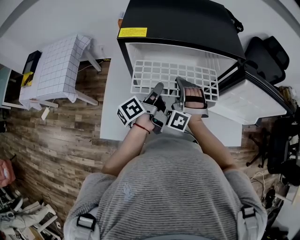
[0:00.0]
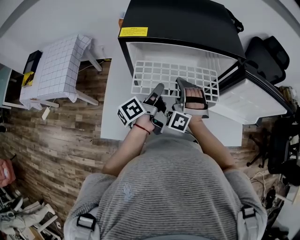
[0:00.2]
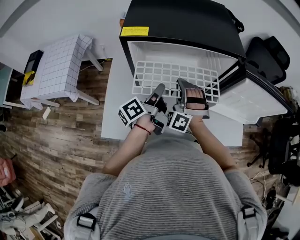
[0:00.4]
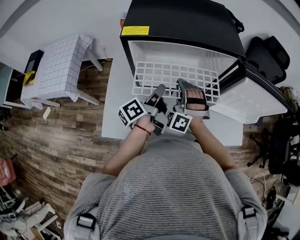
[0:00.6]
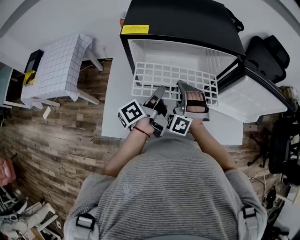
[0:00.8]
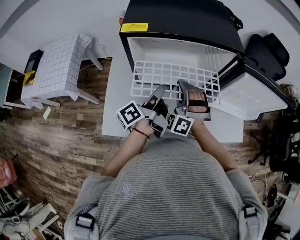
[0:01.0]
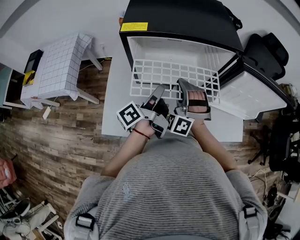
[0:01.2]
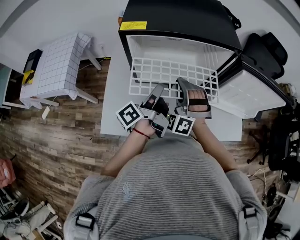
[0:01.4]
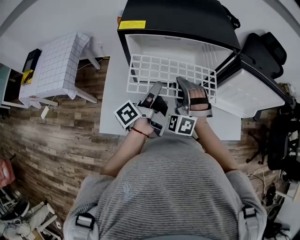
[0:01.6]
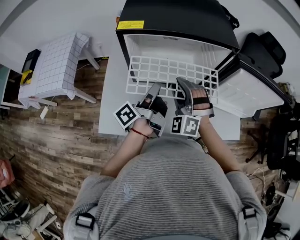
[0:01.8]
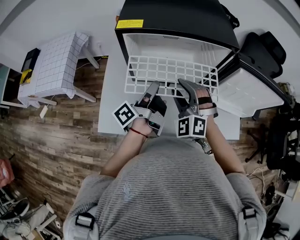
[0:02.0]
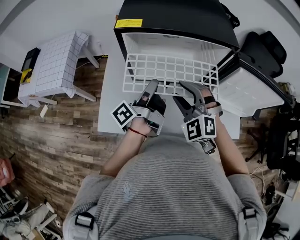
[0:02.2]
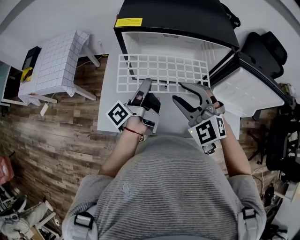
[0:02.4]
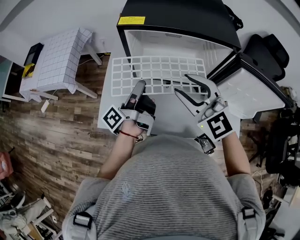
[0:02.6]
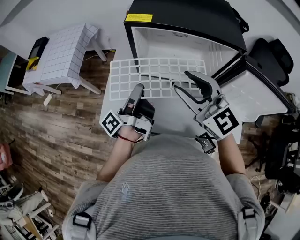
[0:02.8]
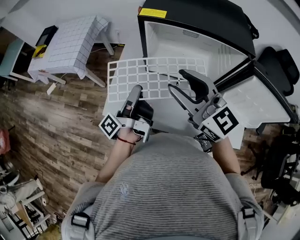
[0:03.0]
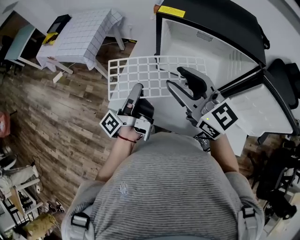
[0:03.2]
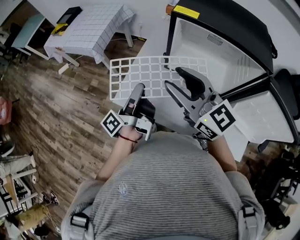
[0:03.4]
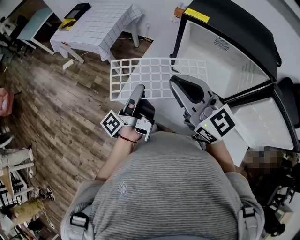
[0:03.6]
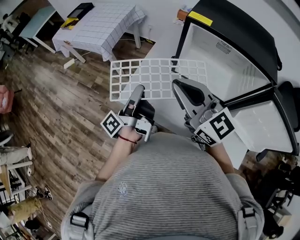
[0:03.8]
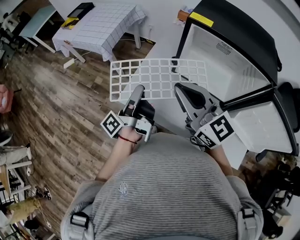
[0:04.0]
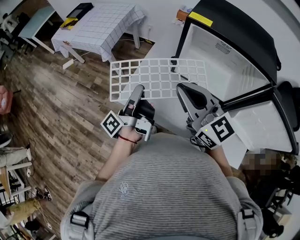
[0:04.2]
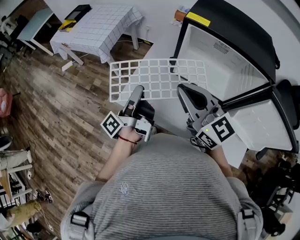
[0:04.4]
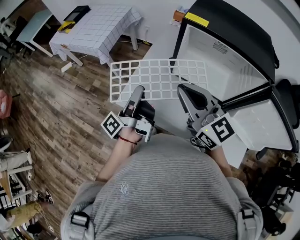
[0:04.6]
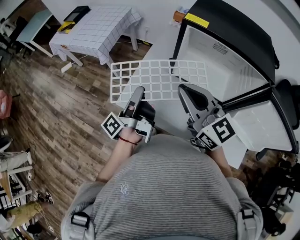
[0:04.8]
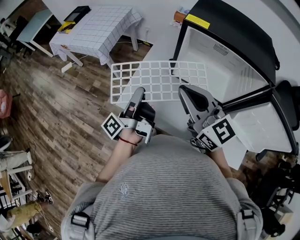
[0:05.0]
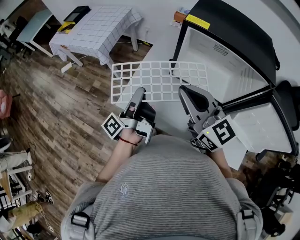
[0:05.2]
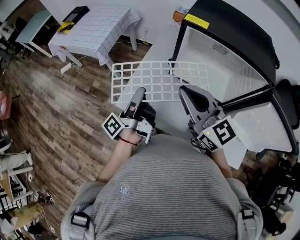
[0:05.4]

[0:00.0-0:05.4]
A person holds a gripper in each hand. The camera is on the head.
0:00.0 to 0:01.4: The left gripper shifts by approximately 5 cm. The right gripper changes place by some 5 cm.
0:01.4 to 0:02.8: The left gripper changes place by approximately 10 cm. Meanwhile the right gripper is displaced upward by about 15 cm, changes its angle by roughly 80 degrees, and opens up.
0:02.8 to 0:04.0: Both grippers travel together to the left, some 15 cm. The left gripper rotates approximately 20 degrees. The right gripper swivels approximately 20 degrees, and closes.
0:04.0 to 0:05.4: The grippers stay close to where they were, moving slightly.

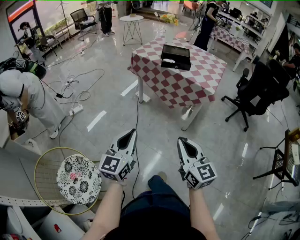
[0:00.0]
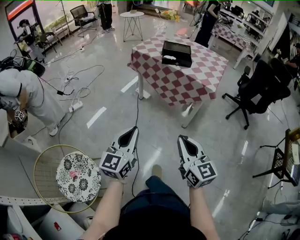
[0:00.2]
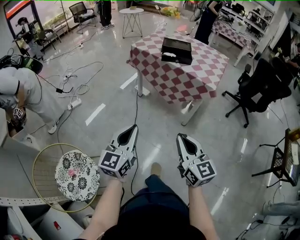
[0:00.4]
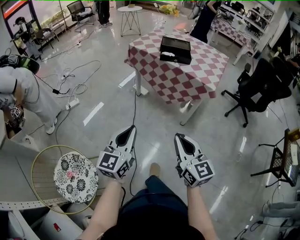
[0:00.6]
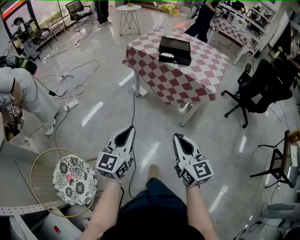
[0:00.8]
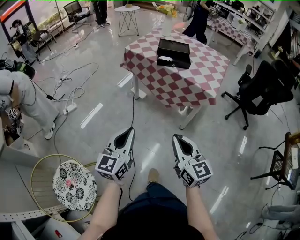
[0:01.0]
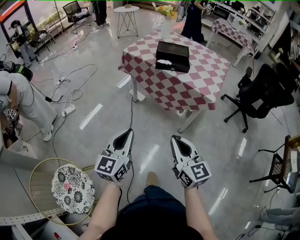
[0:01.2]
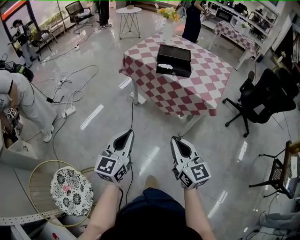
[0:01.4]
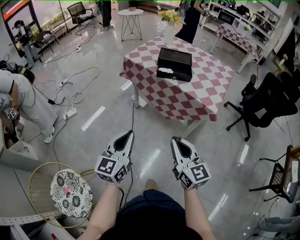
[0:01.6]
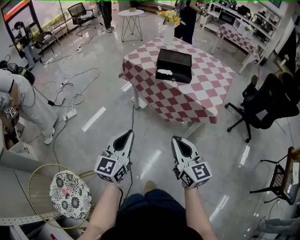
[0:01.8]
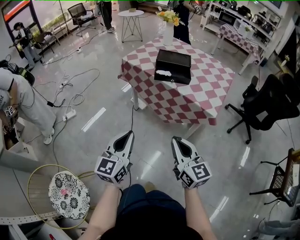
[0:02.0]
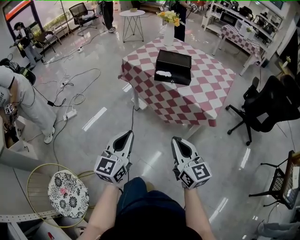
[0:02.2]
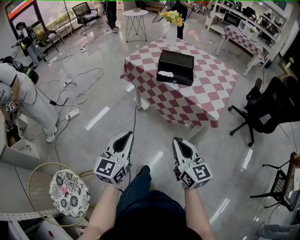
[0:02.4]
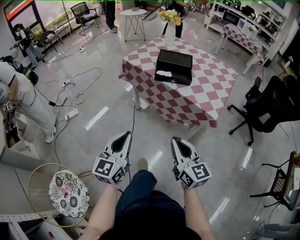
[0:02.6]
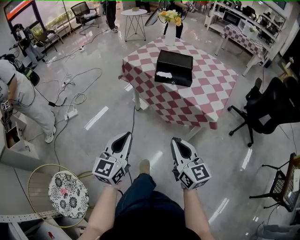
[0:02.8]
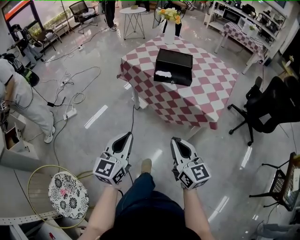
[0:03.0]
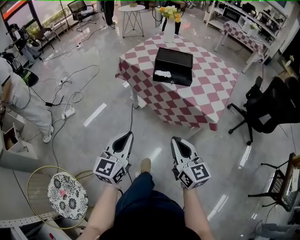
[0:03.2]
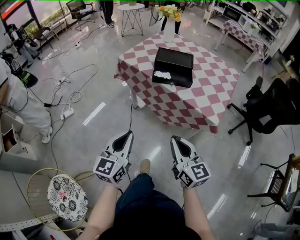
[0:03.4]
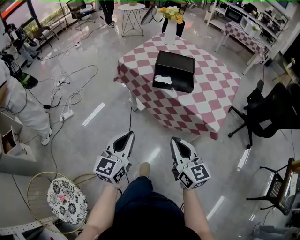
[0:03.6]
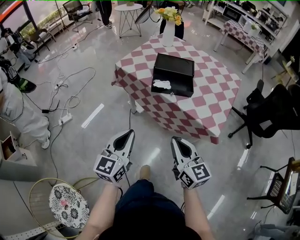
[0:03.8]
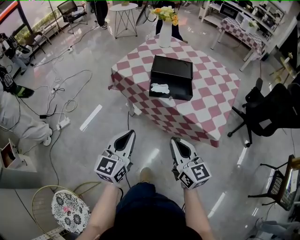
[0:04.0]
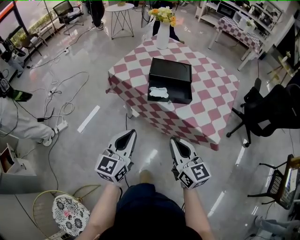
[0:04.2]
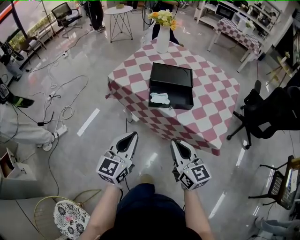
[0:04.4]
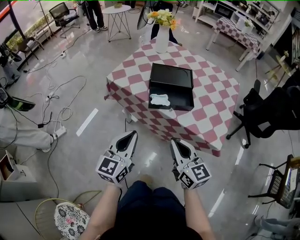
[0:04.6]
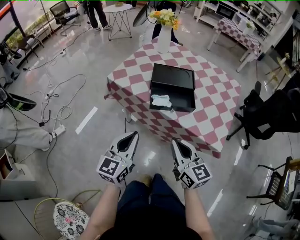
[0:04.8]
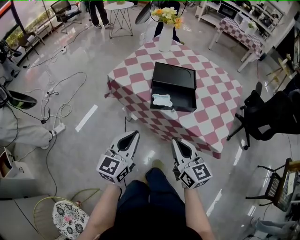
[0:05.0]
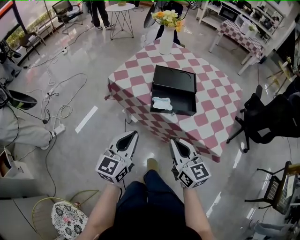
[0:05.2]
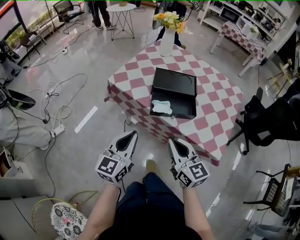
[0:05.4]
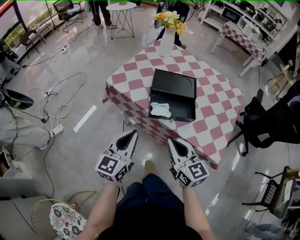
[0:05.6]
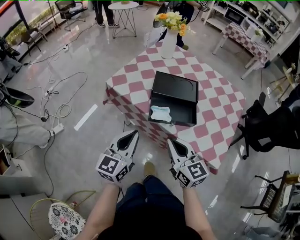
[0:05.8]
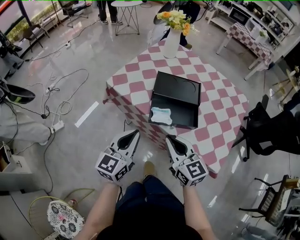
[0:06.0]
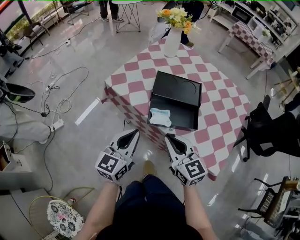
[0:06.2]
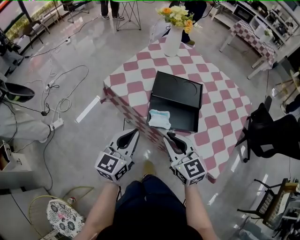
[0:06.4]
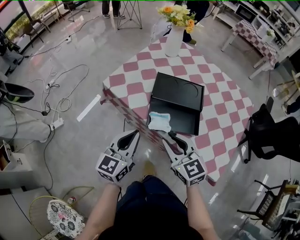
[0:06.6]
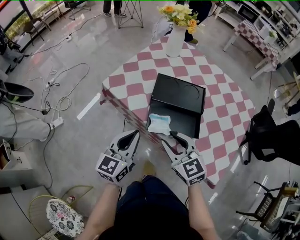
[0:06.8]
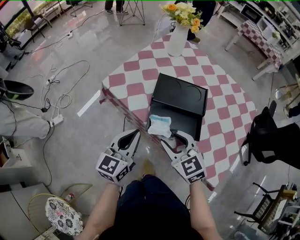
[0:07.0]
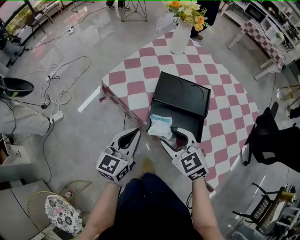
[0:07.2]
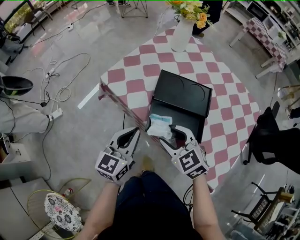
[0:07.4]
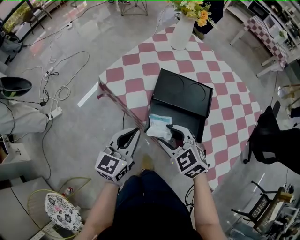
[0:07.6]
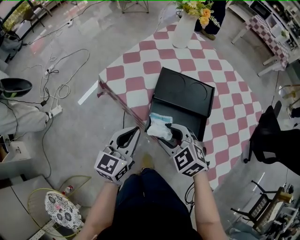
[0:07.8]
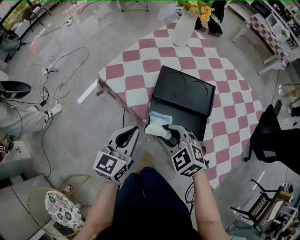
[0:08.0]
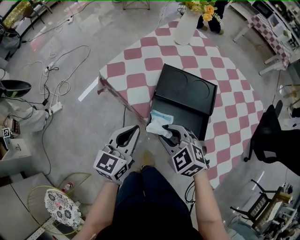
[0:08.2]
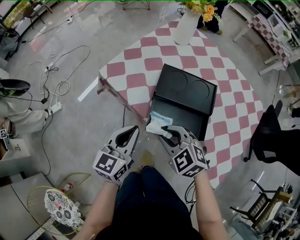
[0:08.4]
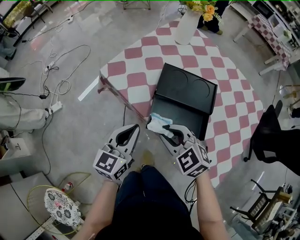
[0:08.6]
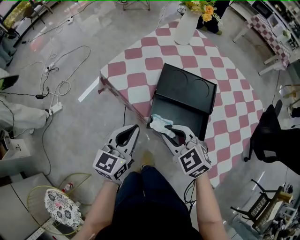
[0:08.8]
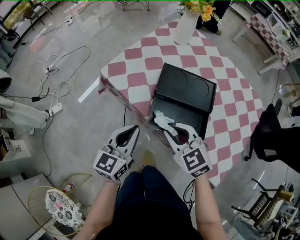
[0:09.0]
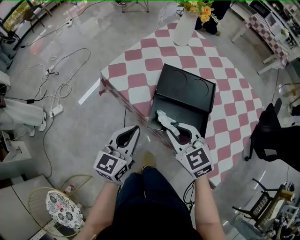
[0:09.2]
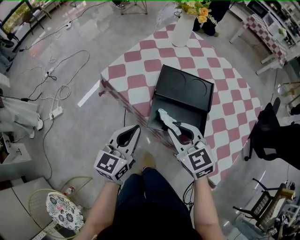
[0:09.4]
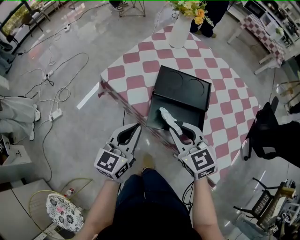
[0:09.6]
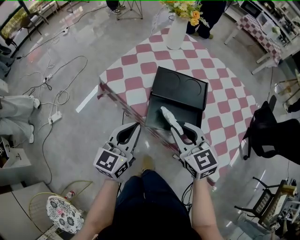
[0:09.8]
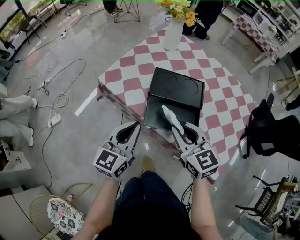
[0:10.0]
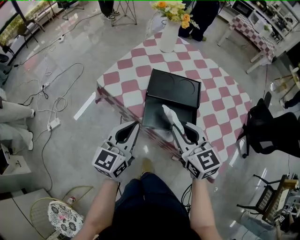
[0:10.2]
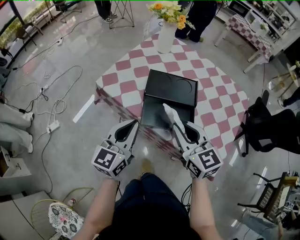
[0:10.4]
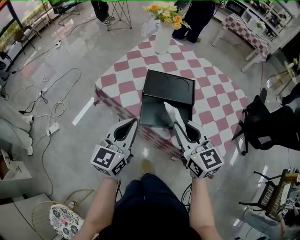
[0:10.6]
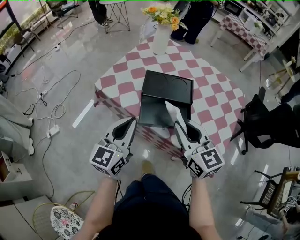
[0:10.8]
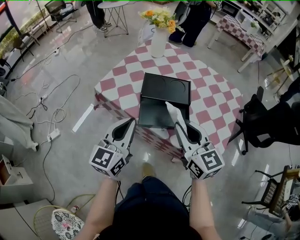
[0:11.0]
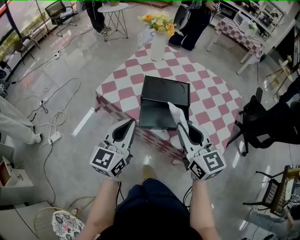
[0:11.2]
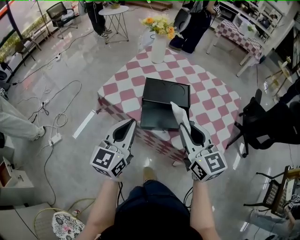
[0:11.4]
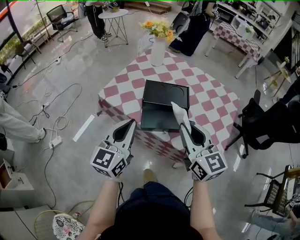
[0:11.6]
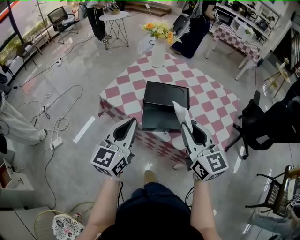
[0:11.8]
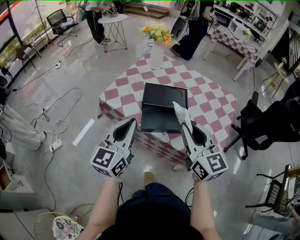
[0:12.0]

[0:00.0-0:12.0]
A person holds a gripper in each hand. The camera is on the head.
0:00.0 to 0:01.6: The grippers both shift forward by roughly 20 cm.
0:01.6 to 0:03.0: Both grippers move forward, some 5 cm.
0:03.0 to 0:04.4: The grippers both shift forward by approximately 20 cm.
0:04.4 to 0:06.0: The grippers both shift forward by some 15 cm.
0:06.0 to 0:07.6: The two grippers go roughly 10 cm forward and downward. The right gripper changes its angle by some 40 degrees, and opens its fingers.
0:07.6 to 0:09.0: The right gripper closes its fingers.
0:09.0 to 0:10.4: The left gripper is displaced upward by some 10 cm. The right gripper travels upward and to the right by some 10 cm, and turns by some 30 degrees.
0:10.4 to 0:12.0: The left gripper goes approximately 10 cm upward; the right gripper shifts roughly 10 cm upward and backward.

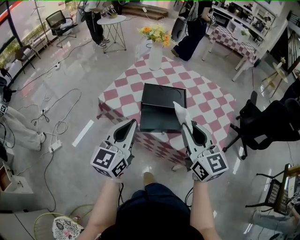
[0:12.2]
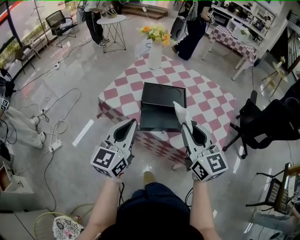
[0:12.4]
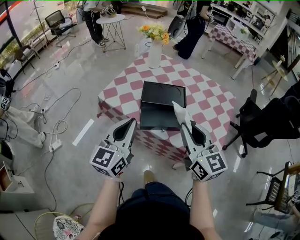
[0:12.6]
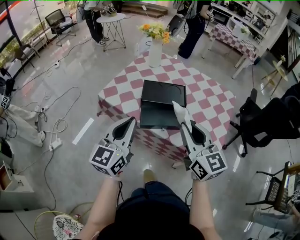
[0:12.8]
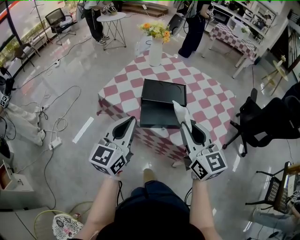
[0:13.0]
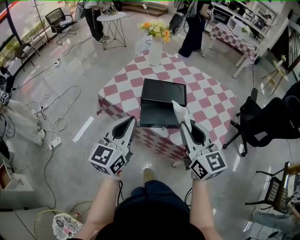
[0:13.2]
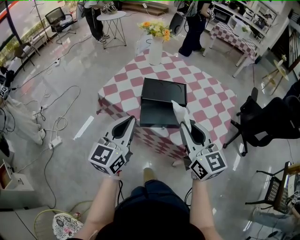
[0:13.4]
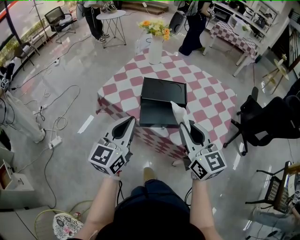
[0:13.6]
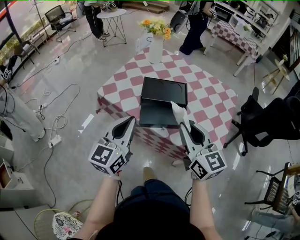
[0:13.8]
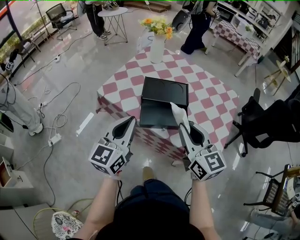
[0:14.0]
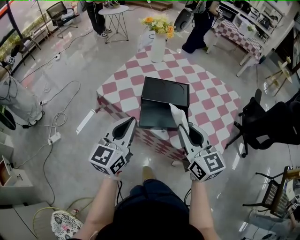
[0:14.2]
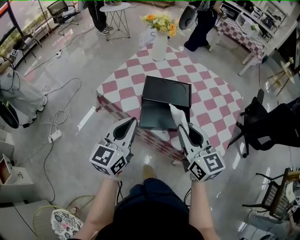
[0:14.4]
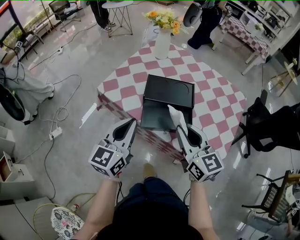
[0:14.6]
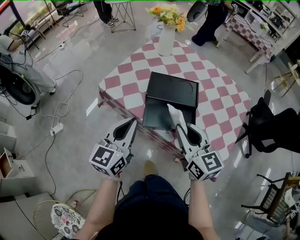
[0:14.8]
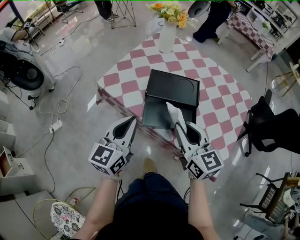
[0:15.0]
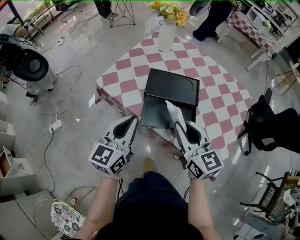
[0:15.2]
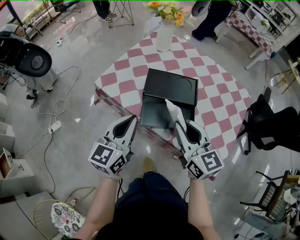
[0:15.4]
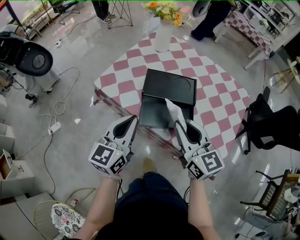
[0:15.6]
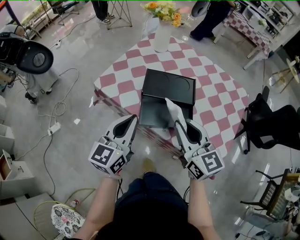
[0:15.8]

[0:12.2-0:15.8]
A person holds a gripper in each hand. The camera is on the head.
0:12.2 to 0:14.0: There are only small adjustments of the grippers.
0:14.0 to 0:15.8: The left gripper shifts by roughly 5 cm. The right gripper moves forward, some 5 cm.

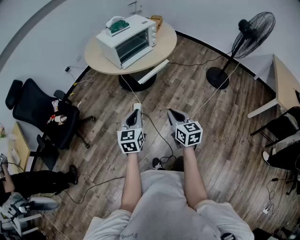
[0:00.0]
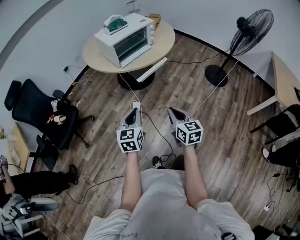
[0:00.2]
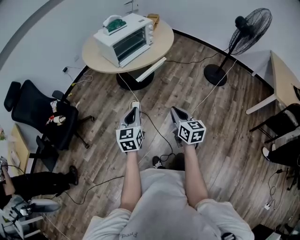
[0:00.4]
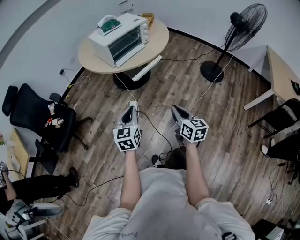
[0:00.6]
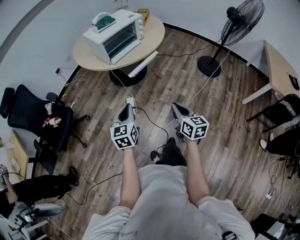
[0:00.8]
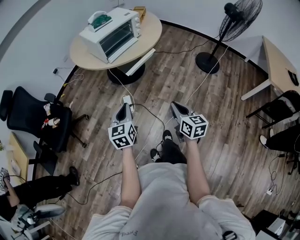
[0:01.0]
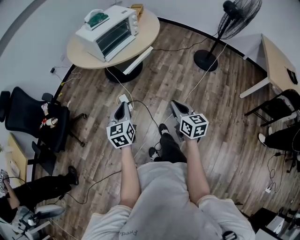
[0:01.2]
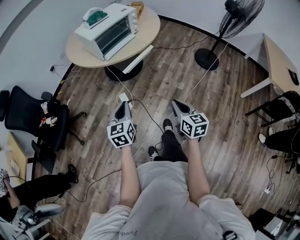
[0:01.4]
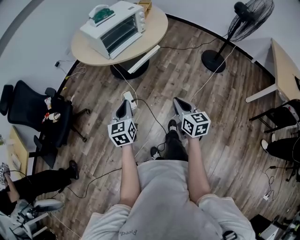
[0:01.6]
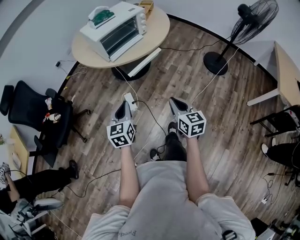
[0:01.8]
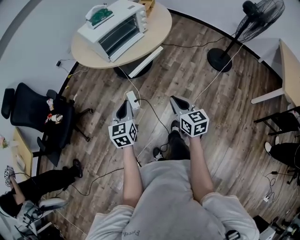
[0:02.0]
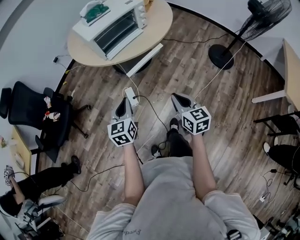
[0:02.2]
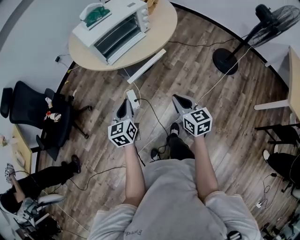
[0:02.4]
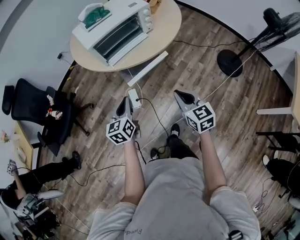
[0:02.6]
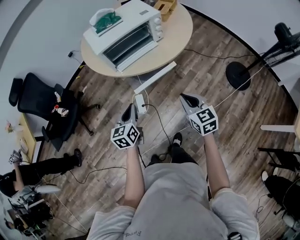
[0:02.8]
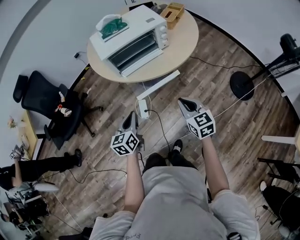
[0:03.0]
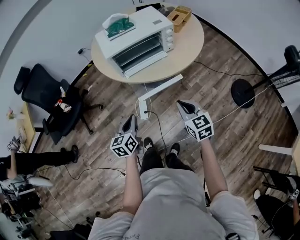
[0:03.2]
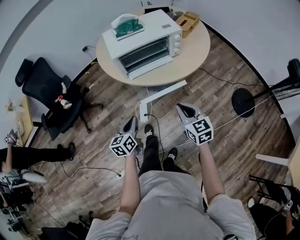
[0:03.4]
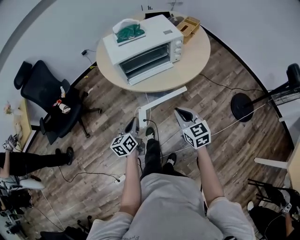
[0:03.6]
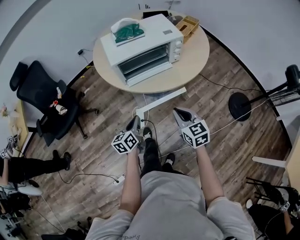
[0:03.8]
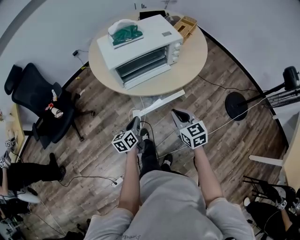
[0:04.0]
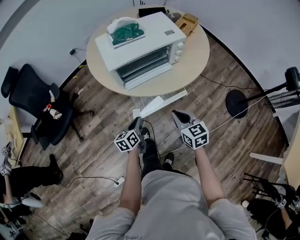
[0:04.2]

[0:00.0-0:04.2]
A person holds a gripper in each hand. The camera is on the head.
0:00.0 to 0:01.4: The right gripper goes some 5 cm to the right.
0:01.4 to 0:02.8: The two grippers go some 25 cm forward. The right gripper rotates roughly 30 degrees.
0:02.8 to 0:04.2: The right gripper travels forward and to the left by some 15 cm; the left gripper goes roughly 15 cm downward and forward, and swivels about 20 degrees.
